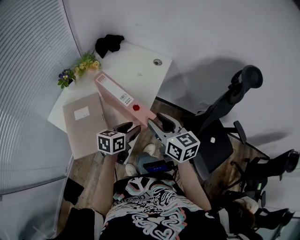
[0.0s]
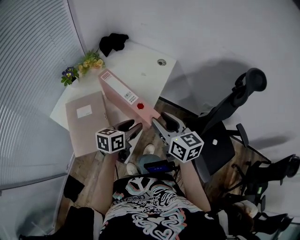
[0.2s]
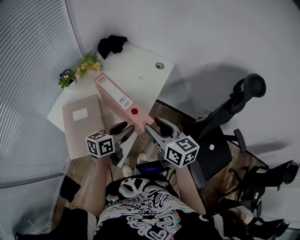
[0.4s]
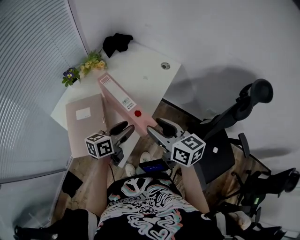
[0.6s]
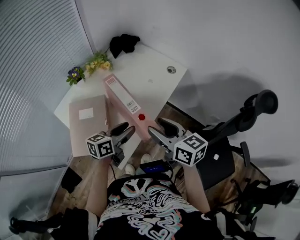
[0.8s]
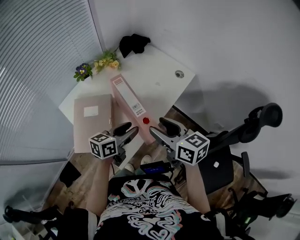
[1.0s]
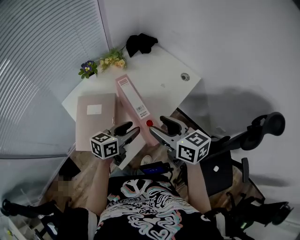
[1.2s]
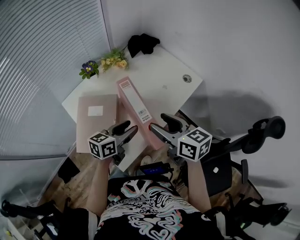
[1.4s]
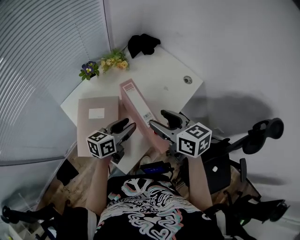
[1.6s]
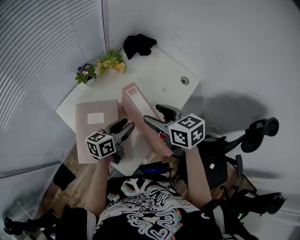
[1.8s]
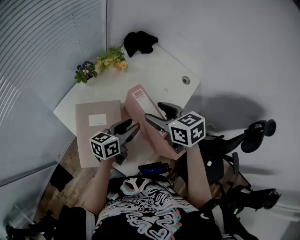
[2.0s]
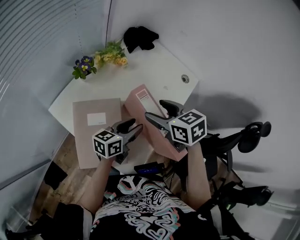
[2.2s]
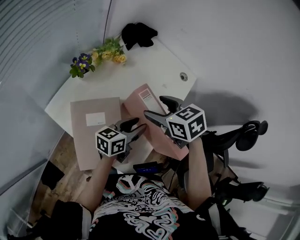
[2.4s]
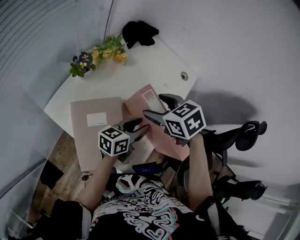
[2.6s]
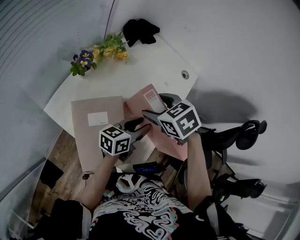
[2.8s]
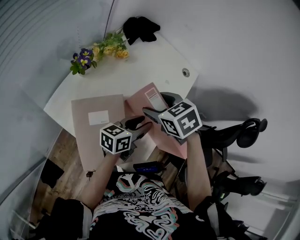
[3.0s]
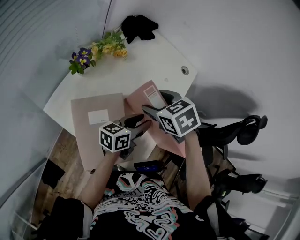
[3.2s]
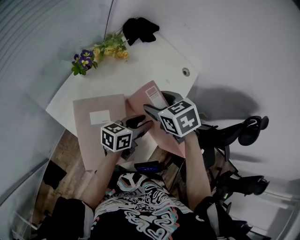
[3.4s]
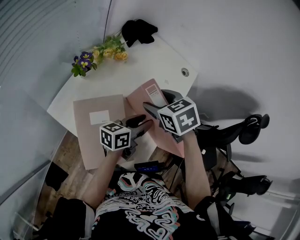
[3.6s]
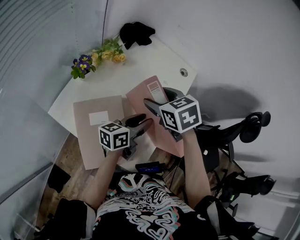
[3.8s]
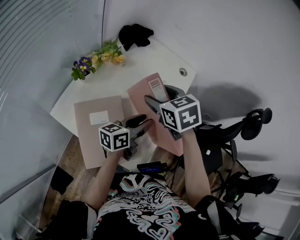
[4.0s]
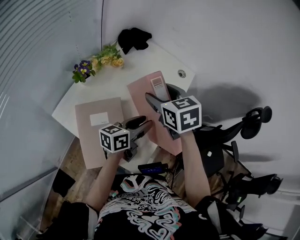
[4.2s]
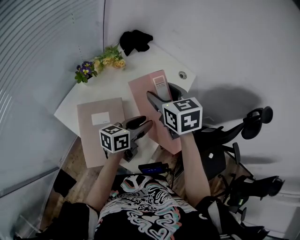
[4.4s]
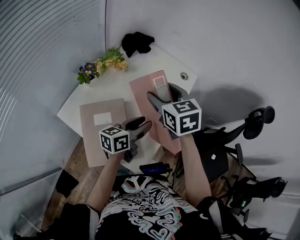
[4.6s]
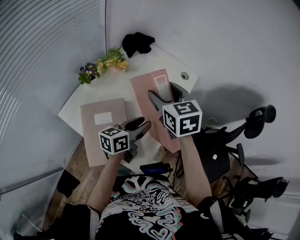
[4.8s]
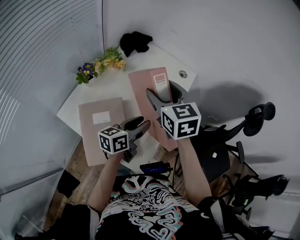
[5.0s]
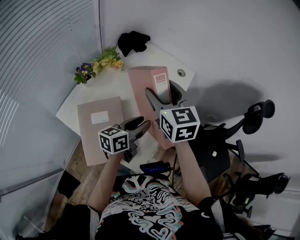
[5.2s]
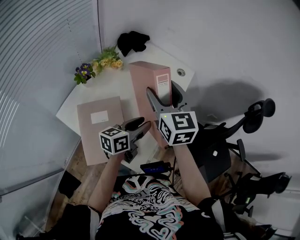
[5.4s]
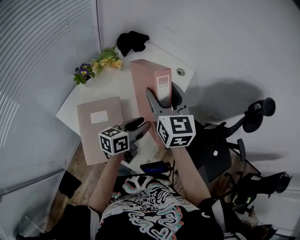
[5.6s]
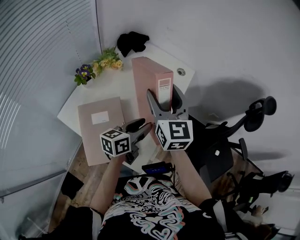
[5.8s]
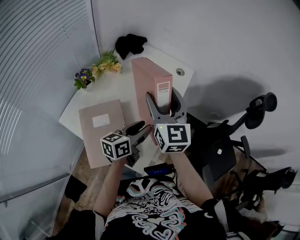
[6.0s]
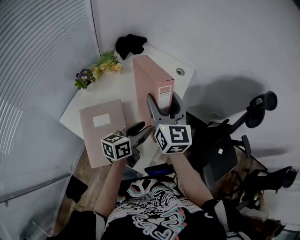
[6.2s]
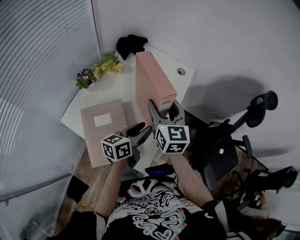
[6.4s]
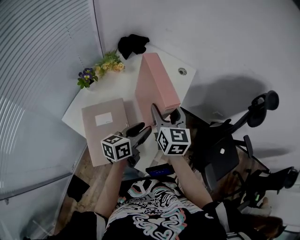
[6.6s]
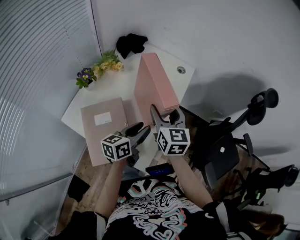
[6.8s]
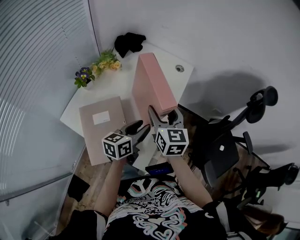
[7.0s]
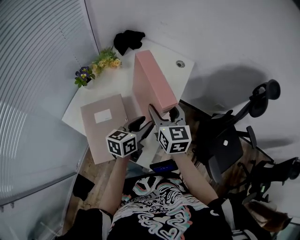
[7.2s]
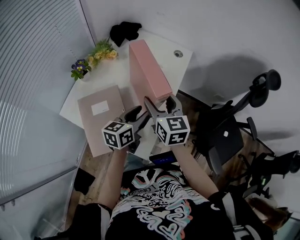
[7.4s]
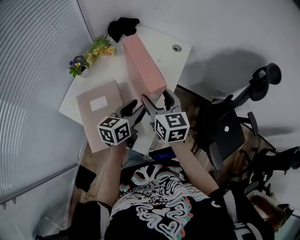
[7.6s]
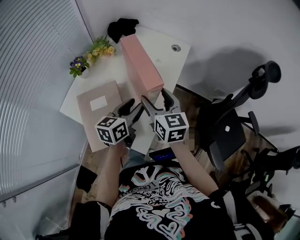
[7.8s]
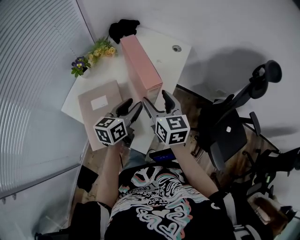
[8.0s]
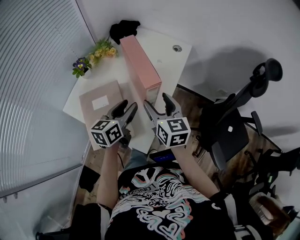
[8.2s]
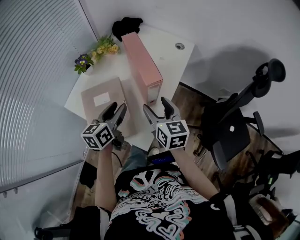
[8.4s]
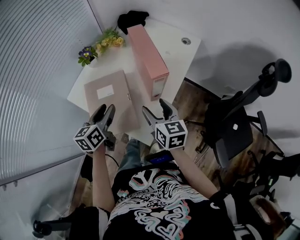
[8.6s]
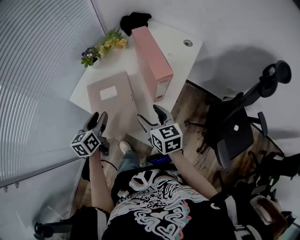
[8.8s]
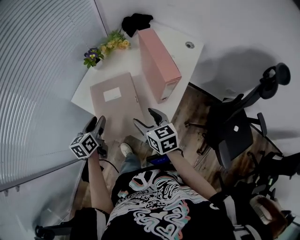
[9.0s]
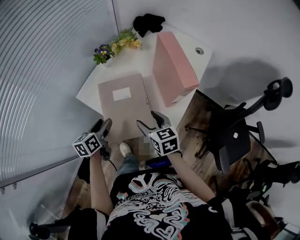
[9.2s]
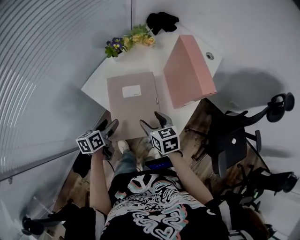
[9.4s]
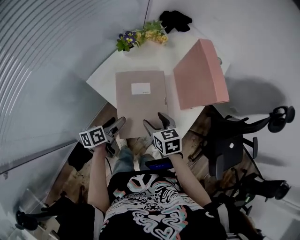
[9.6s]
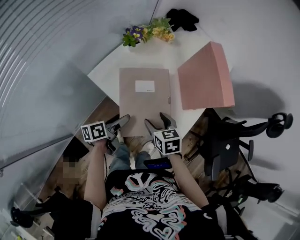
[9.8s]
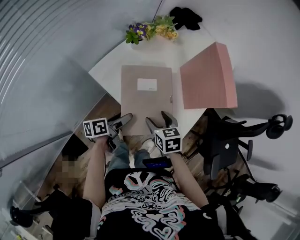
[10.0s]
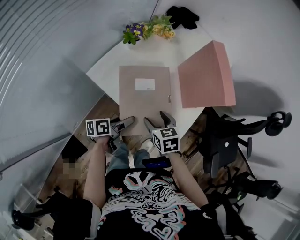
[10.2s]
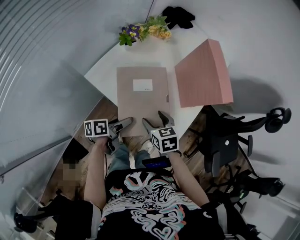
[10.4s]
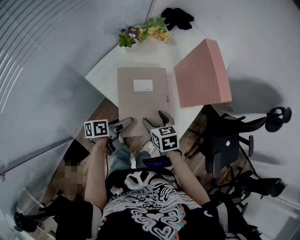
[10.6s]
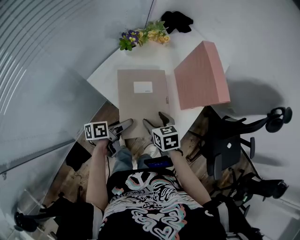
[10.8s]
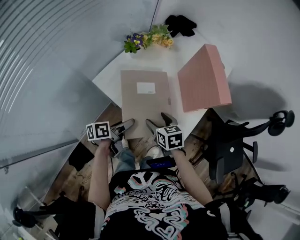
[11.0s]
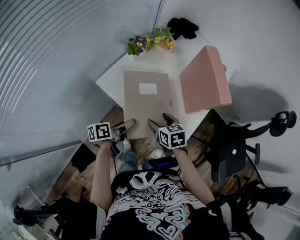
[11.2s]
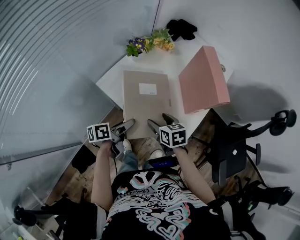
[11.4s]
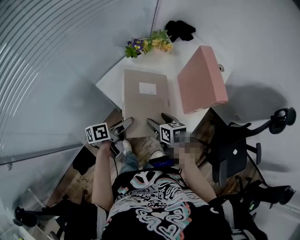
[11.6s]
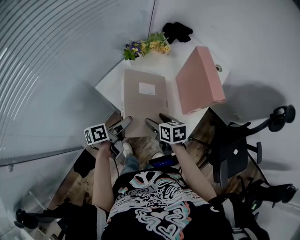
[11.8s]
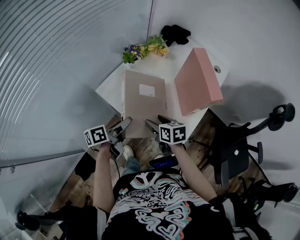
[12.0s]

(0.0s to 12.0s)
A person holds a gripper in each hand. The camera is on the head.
0.0s - 1.6s: The left gripper goes some 10 cm to the left and forward, and swivels roughly 20 degrees. The right gripper heads forward and to the left, covering some 10 cm, and rotates some 30 degrees.
1.6s - 3.0s: The left gripper turns by some 20 degrees. The right gripper heads to the left, forward and downward, covering about 15 cm, and points its fingers approximately 40 degrees further downward.
3.0s - 4.4s: The right gripper goes about 10 cm upward, and rotates some 30 degrees.
4.4s - 6.0s: The right gripper ends up roughly 5 cm from where it was, and angles its fingers upward, by some 30 degrees.
6.0s - 7.6s: The right gripper goes some 10 cm downward and backward.
7.6s - 9.0s: The right gripper heads backward, to the left and downward, covering about 15 cm, and changes its angle by about 20 degrees; the left gripper heads to the left, covering about 25 cm, and changes its angle by some 30 degrees.
9.0s - 10.4s: The left gripper moves downward, approximately 10 cm, rotates some 50 degrees, and opens its fingers. Meanwhile the right gripper heads downward and to the left, covering about 15 cm, and changes its angle by some 20 degrees.
10.4s - 12.0s: The left gripper heads upward, covering about 10 cm.

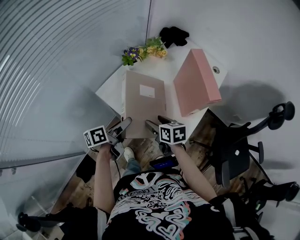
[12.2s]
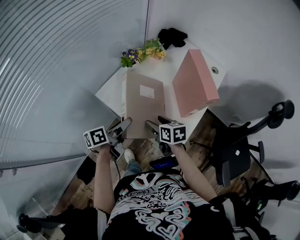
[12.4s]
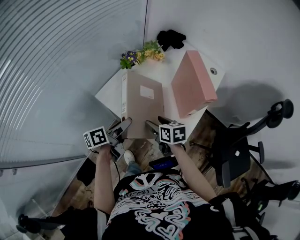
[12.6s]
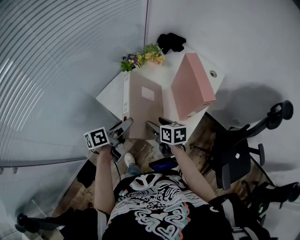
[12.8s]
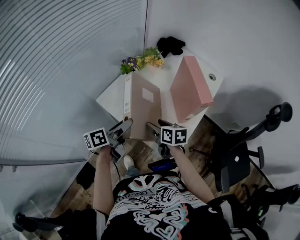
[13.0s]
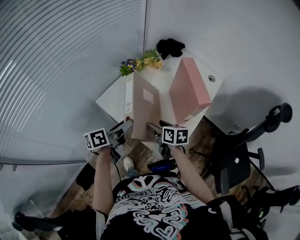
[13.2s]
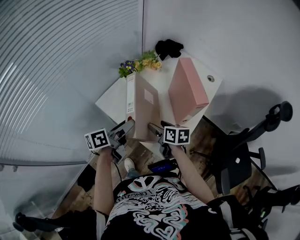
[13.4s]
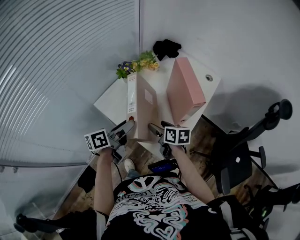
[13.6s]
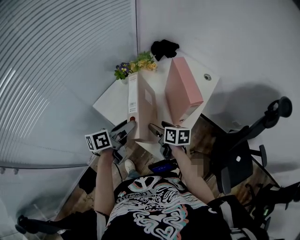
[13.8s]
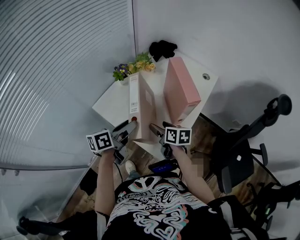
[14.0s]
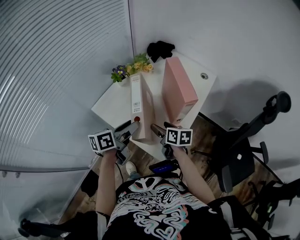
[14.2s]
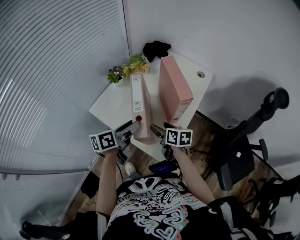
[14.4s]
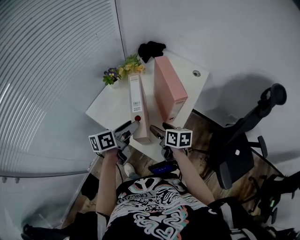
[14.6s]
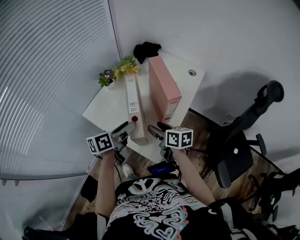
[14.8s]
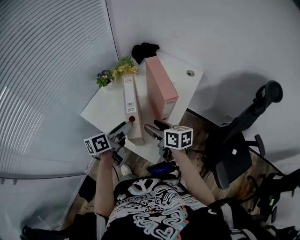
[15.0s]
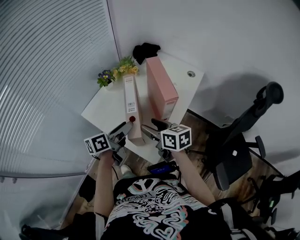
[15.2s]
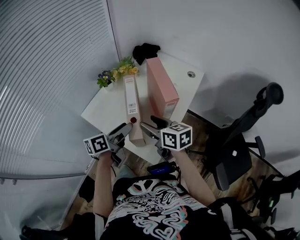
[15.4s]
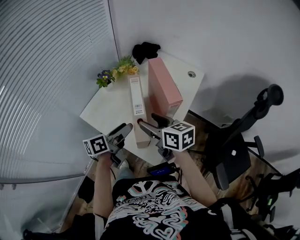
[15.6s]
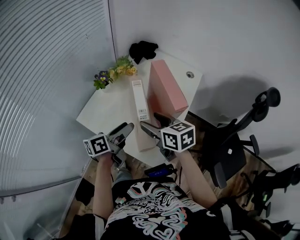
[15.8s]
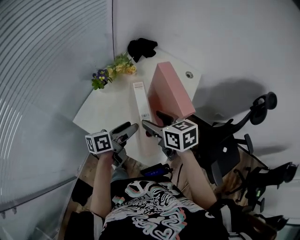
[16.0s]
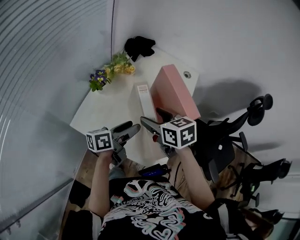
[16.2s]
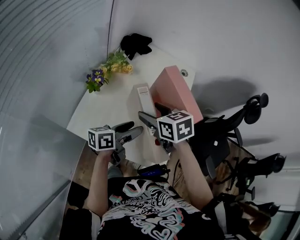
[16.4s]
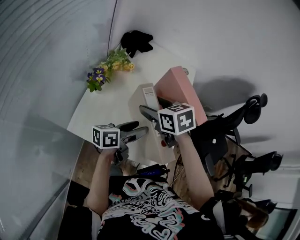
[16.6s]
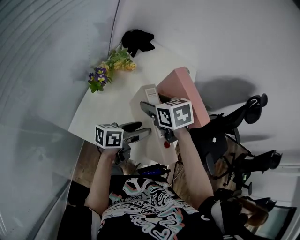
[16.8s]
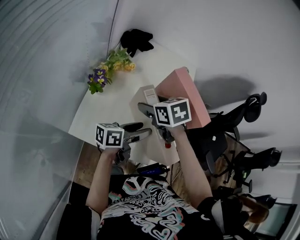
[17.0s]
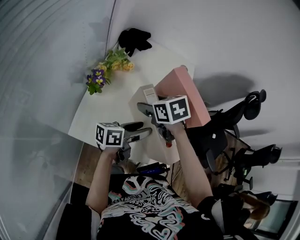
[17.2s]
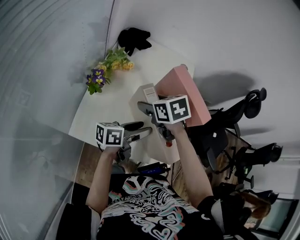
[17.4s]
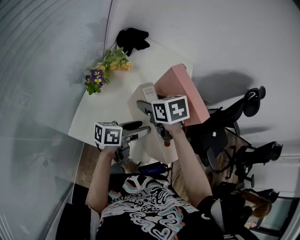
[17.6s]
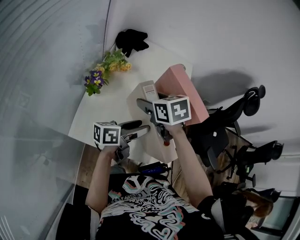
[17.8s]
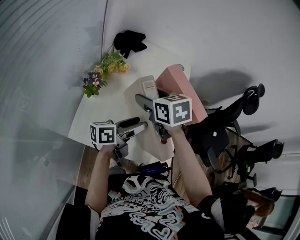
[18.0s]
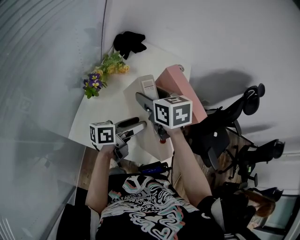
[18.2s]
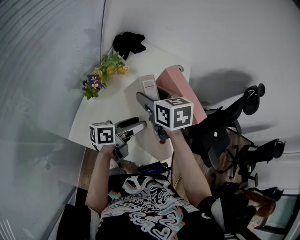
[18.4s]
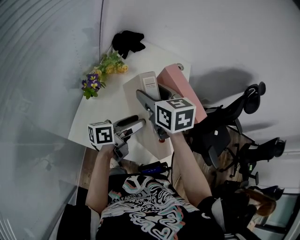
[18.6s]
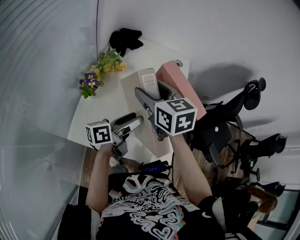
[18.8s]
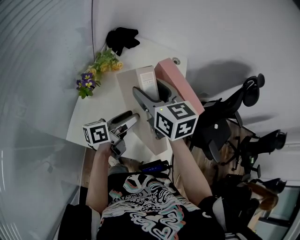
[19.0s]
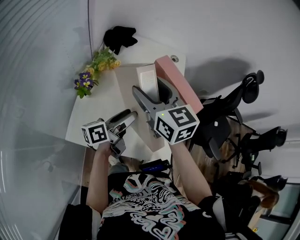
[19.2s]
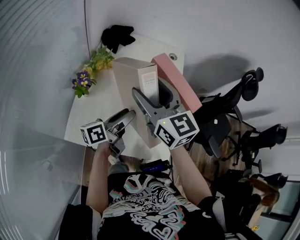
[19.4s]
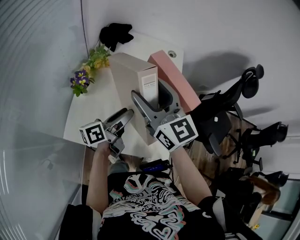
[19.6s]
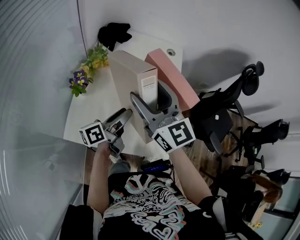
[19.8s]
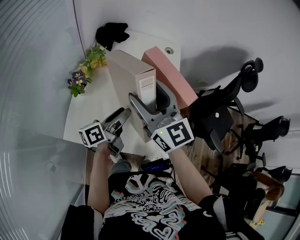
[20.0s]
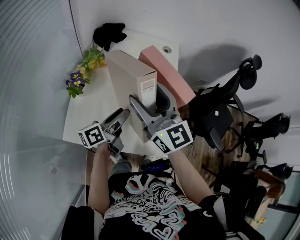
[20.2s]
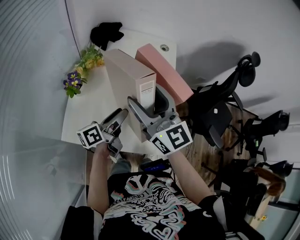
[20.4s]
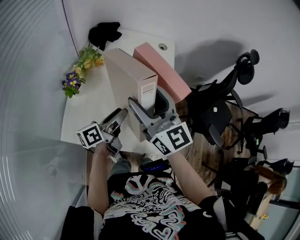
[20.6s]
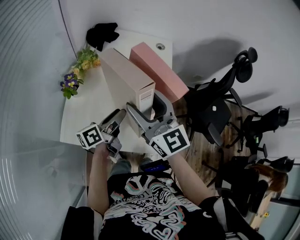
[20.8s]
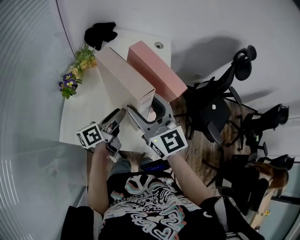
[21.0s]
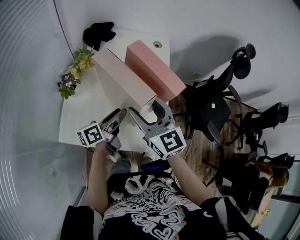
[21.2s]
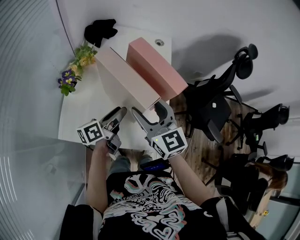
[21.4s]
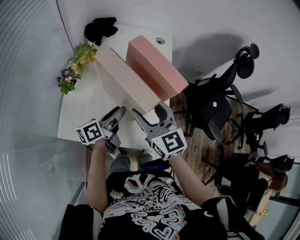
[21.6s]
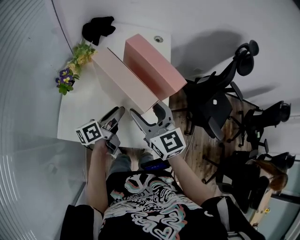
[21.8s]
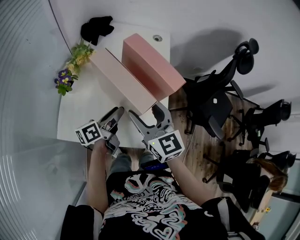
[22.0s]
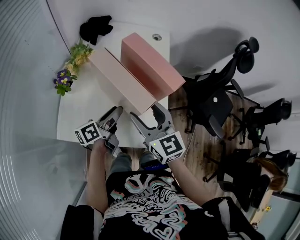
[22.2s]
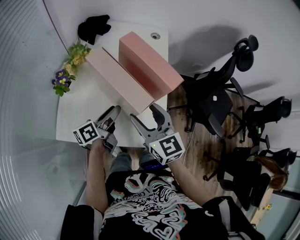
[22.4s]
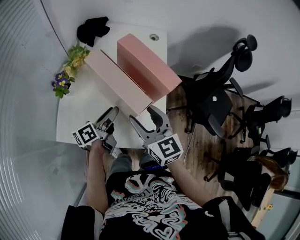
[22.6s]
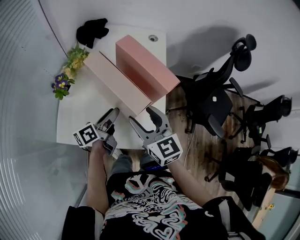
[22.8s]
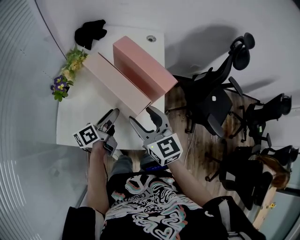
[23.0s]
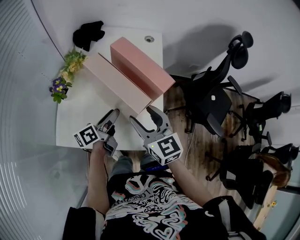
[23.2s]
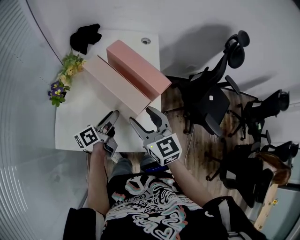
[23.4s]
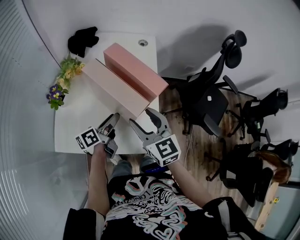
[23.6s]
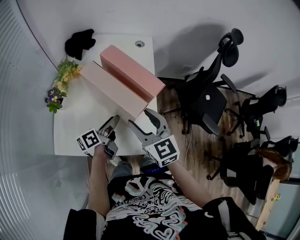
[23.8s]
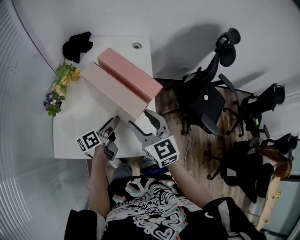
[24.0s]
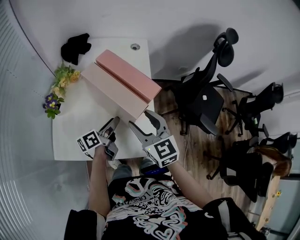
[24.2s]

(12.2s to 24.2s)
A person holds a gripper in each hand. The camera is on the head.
12.2s - 13.8s: The right gripper heads to the right, covering approximately 5 cm. The left gripper moves upward and to the right, about 10 cm.
13.8s - 15.2s: The left gripper is displaced to the right by about 5 cm. The right gripper moves upward, about 10 cm.
15.2s - 16.6s: The left gripper ends up about 10 cm from where it was, and swivels roughly 30 degrees. Meanwhile the right gripper changes place by some 20 cm, and rotates some 30 degrees.
16.6s - 18.2s: The right gripper shifts by some 5 cm.
18.2s - 19.8s: The right gripper moves upward and backward, approximately 10 cm, and tilts its fingers about 40 degrees upward.
19.8s - 21.2s: The right gripper goes some 10 cm downward and to the right.
21.2s - 22.6s: The right gripper shifts roughly 5 cm downward.
22.6s - 24.2s: The left gripper heads to the right, covering approximately 5 cm.
